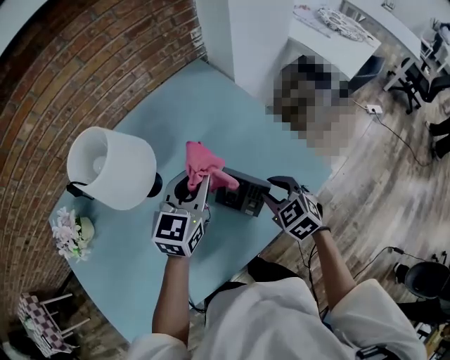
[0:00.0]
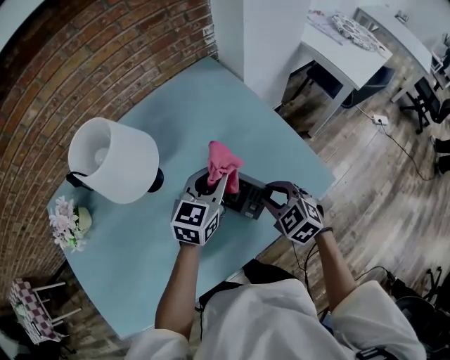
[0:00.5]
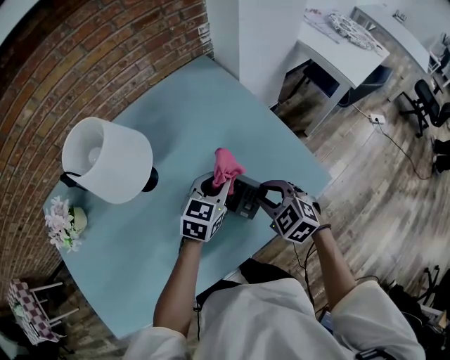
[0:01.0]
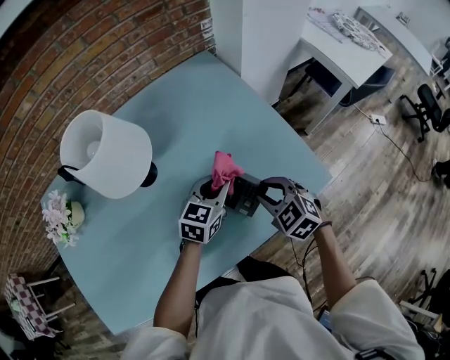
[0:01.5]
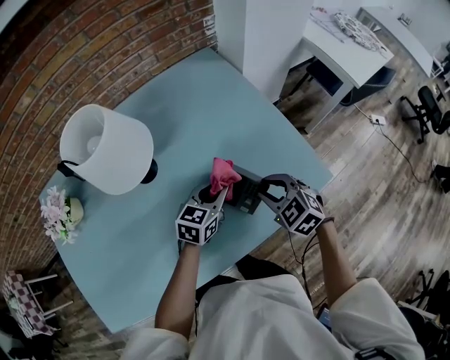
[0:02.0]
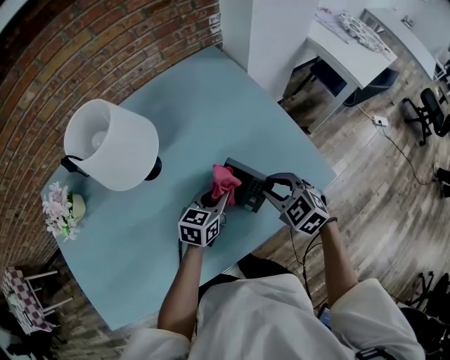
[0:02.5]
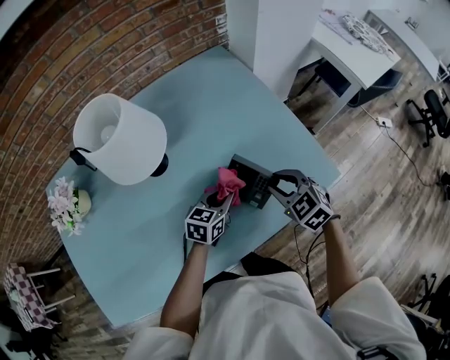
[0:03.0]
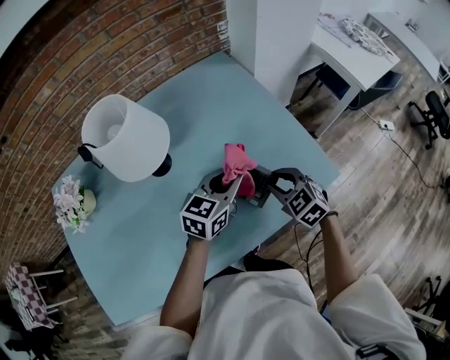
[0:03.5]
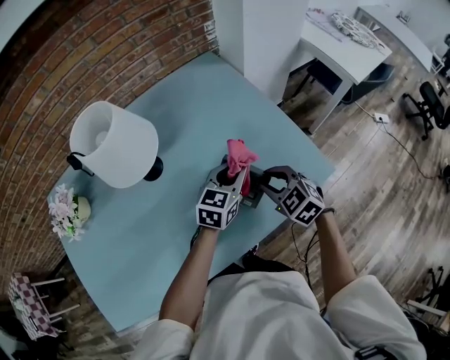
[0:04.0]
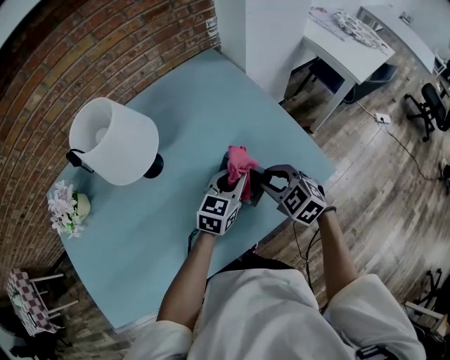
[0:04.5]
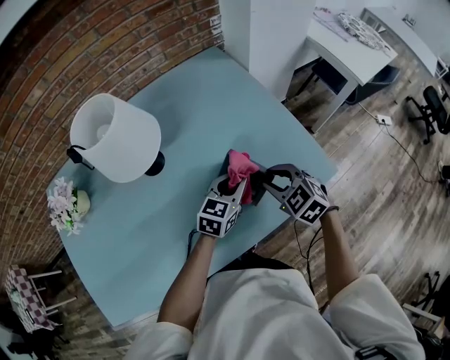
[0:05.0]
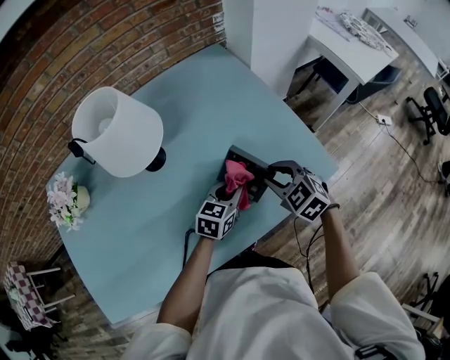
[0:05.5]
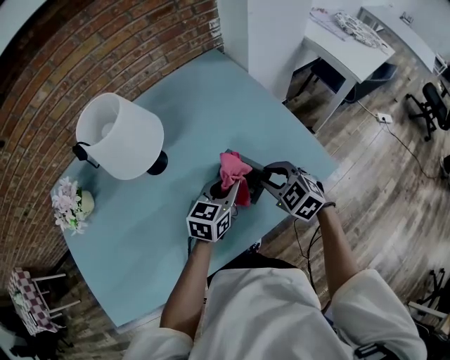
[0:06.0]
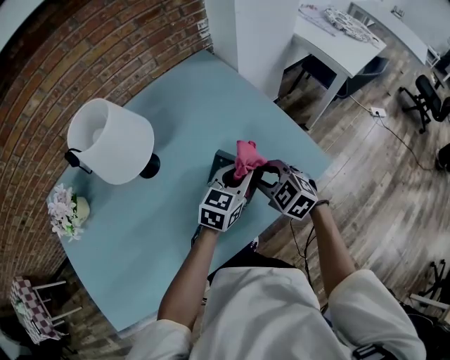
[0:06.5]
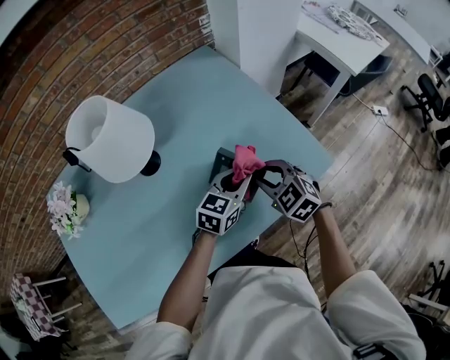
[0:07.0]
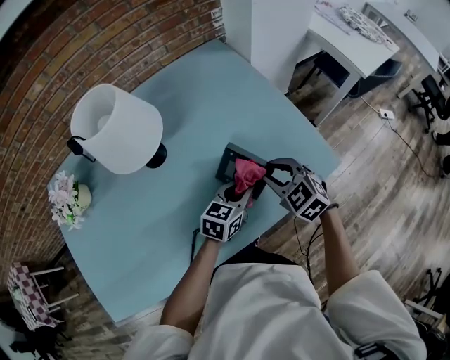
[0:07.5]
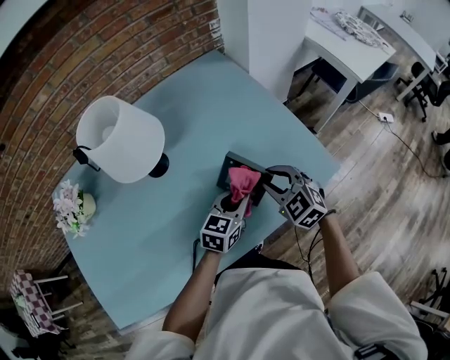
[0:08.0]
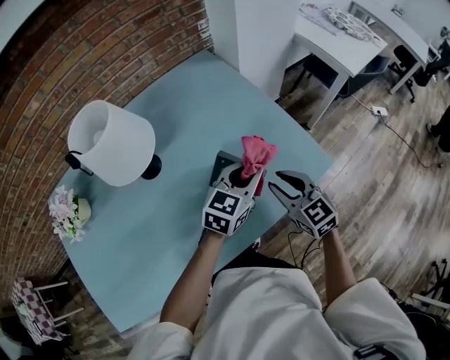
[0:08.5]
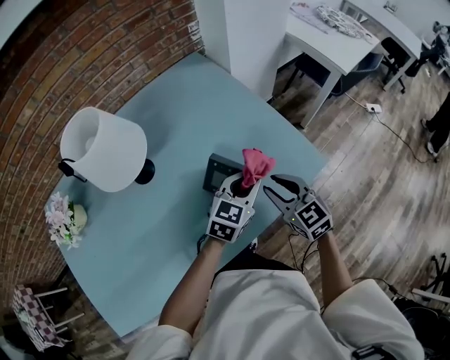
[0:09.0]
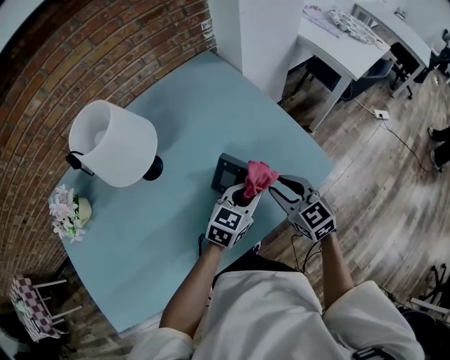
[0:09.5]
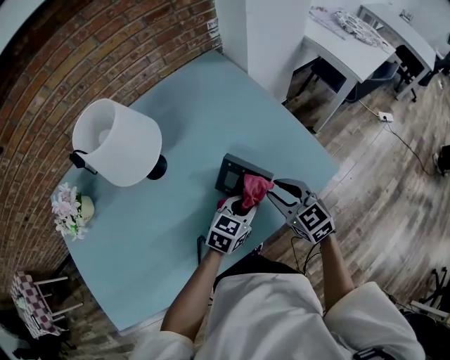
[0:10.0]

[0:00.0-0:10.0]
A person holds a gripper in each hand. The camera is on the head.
0:00.0 to 0:02.0: The left gripper moves downward, roughly 15 cm.
0:02.0 to 0:04.0: The left gripper moves up and down over roughly 15 cm, changing direction 2 times.
0:06.0 to 0:08.0: The left gripper ends up about 5 cm from where it was.
0:08.0 to 0:10.0: The left gripper reaches about 10 cm upward, then returns, while the right gripper rotates about 20 degrees.

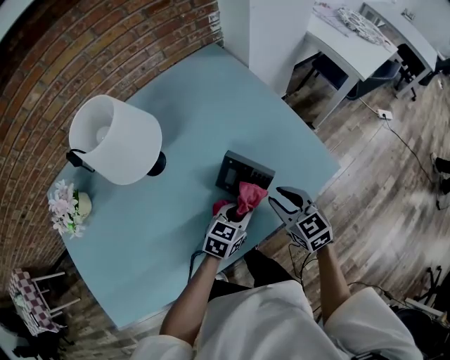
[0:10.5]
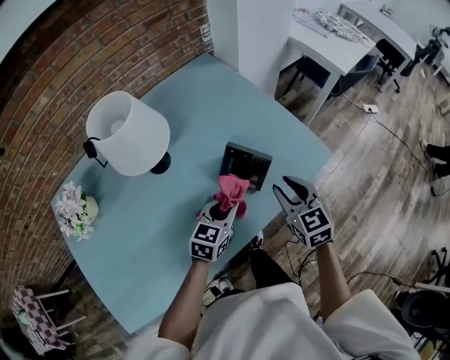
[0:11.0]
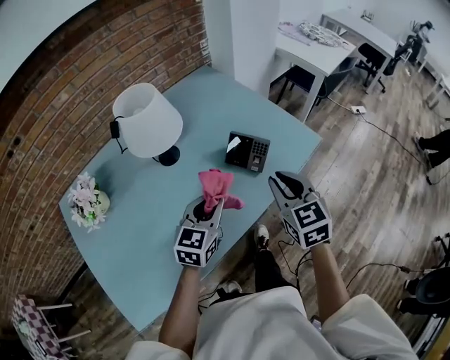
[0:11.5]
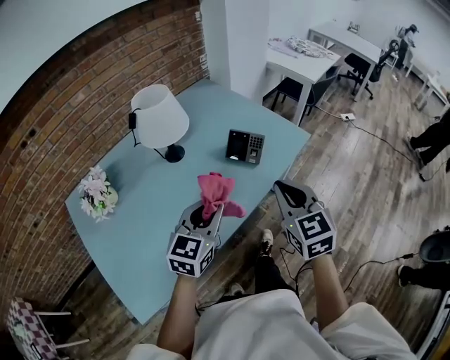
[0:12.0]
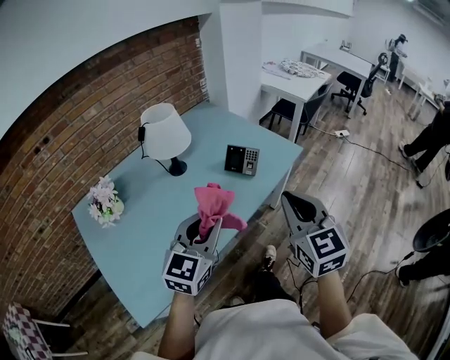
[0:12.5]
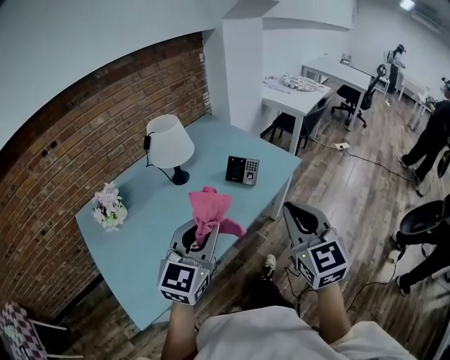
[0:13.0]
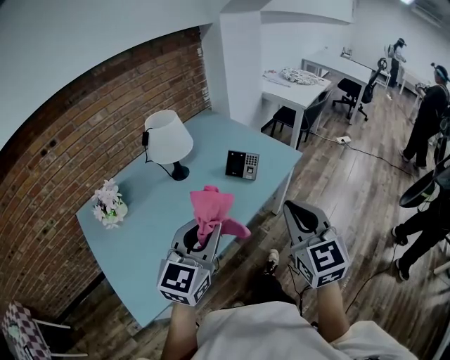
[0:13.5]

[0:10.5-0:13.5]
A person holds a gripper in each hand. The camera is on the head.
0:10.5 to 0:12.0: The right gripper travels backward and upward by some 35 cm, turns by roughly 30 degrees, and closes its fingers. Meanwhile the left gripper heads upward, backward and to the left, covering approximately 35 cm, and rotates some 30 degrees.
0:12.0 to 0:13.5: The two grippers go roughly 15 cm backward and upward.

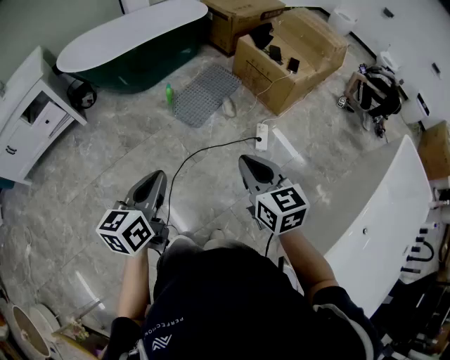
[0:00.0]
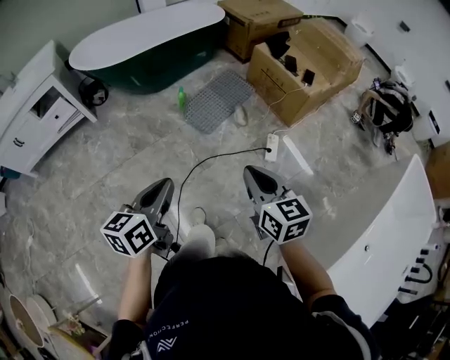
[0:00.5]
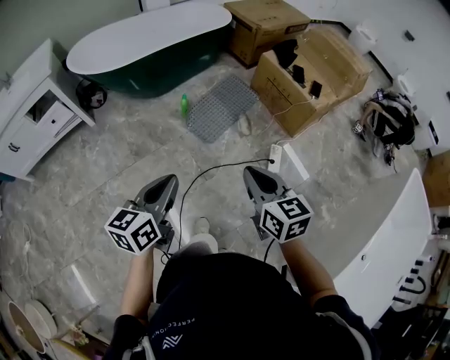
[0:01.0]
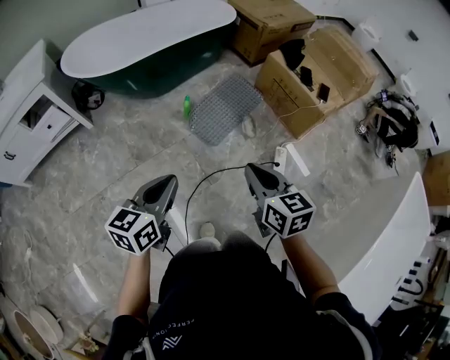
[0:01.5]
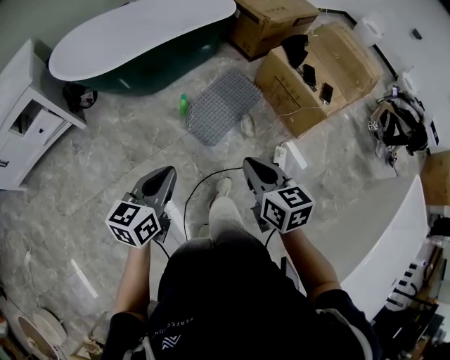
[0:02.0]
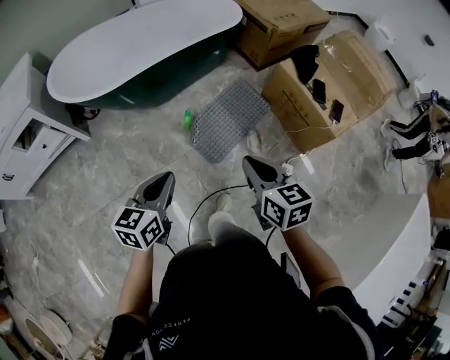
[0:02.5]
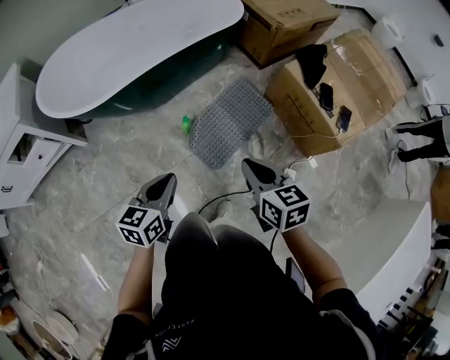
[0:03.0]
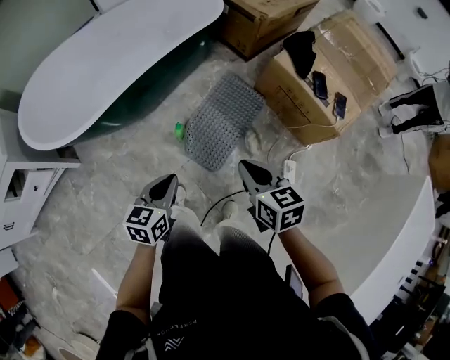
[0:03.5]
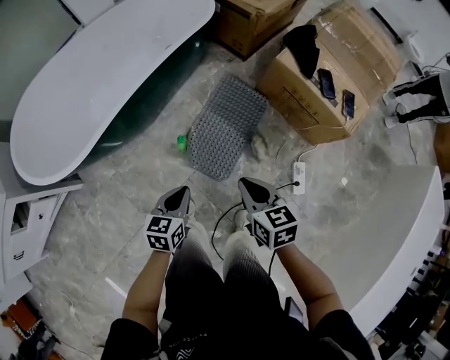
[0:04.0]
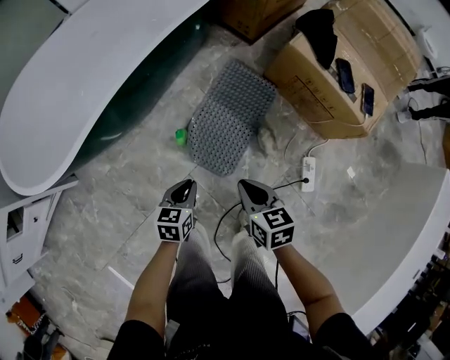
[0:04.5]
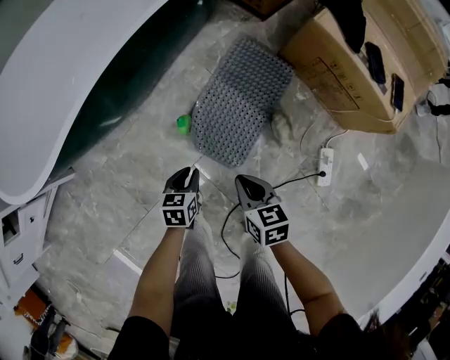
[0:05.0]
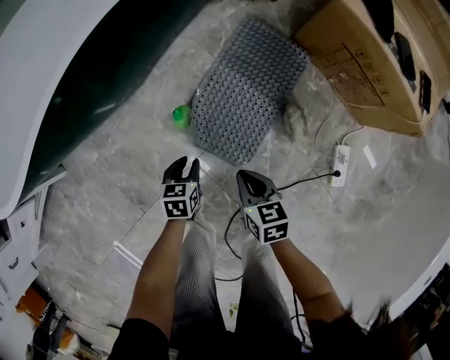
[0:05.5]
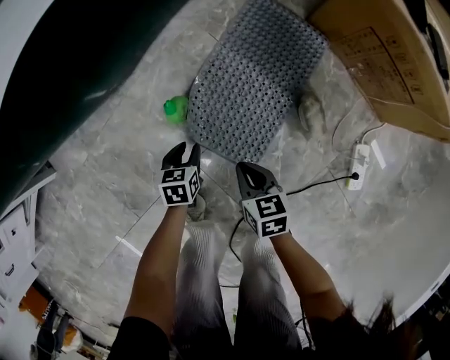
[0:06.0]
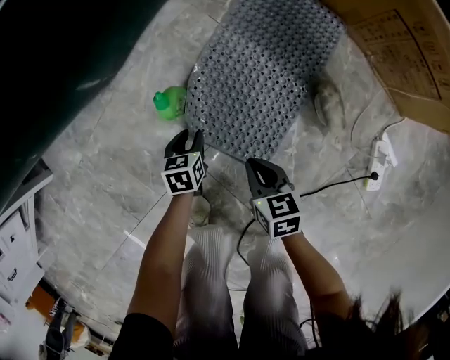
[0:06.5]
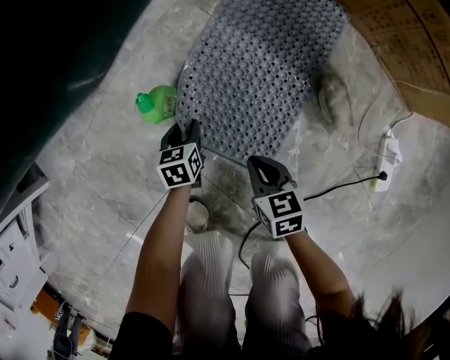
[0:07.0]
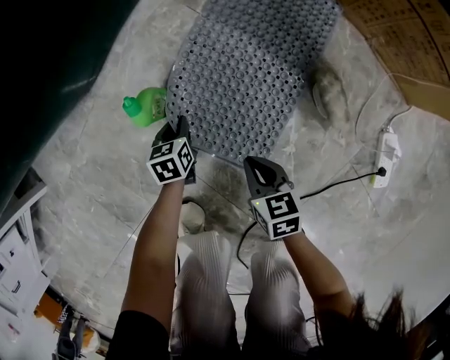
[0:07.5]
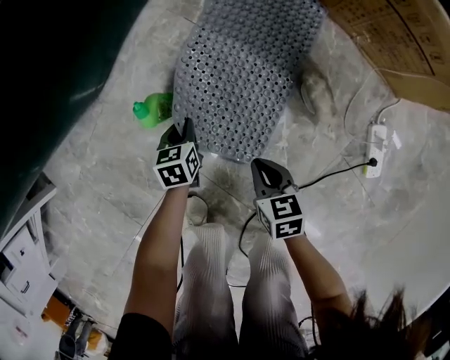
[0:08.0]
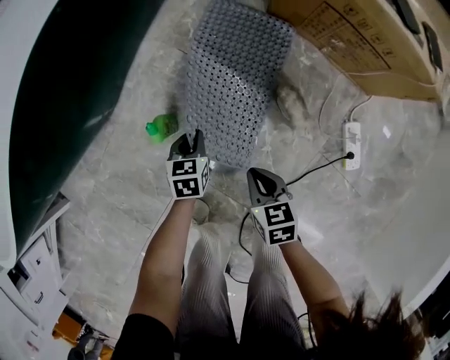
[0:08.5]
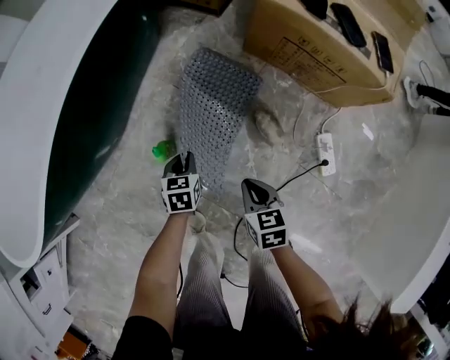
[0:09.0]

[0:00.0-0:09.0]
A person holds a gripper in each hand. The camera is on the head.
0:00.0 to 0:02.0: Both grippers move forward, approximately 25 cm.
0:02.0 to 0:04.5: Both grippers move forward and downward, about 40 cm. The left gripper changes its angle by roughly 30 degrees.
0:04.5 to 0:07.0: The two grippers go approximately 50 cm downward. The left gripper opens up.
0:07.0 to 0:09.0: The two grippers go about 25 cm upward. The left gripper closes its fingers.

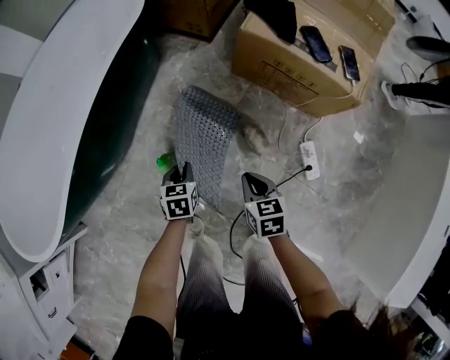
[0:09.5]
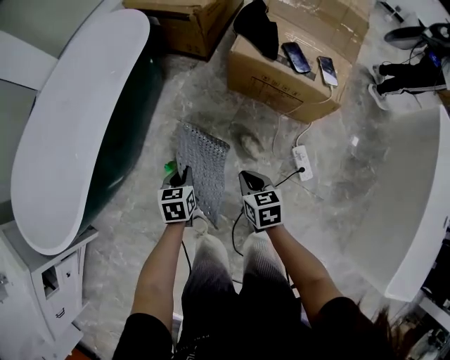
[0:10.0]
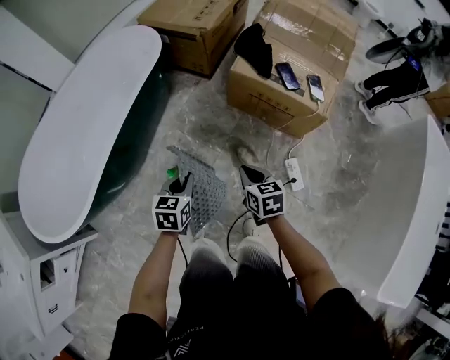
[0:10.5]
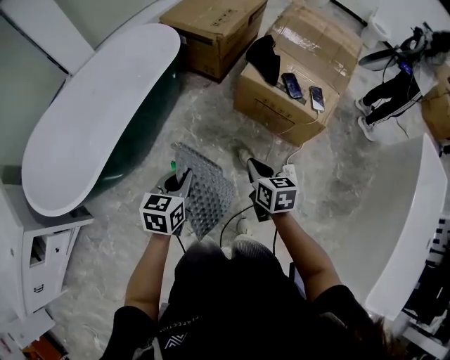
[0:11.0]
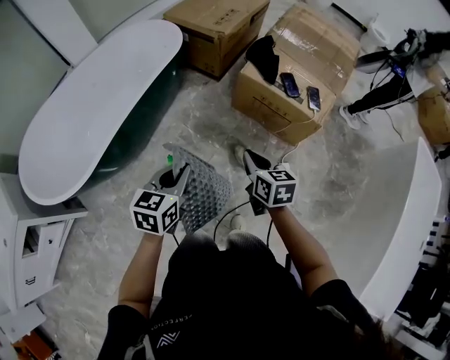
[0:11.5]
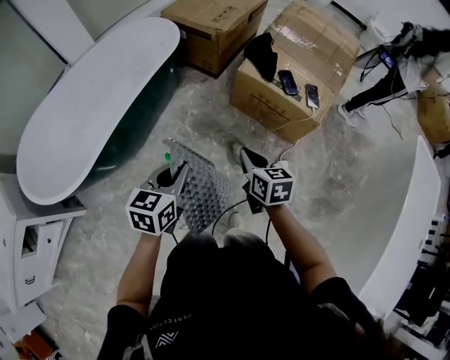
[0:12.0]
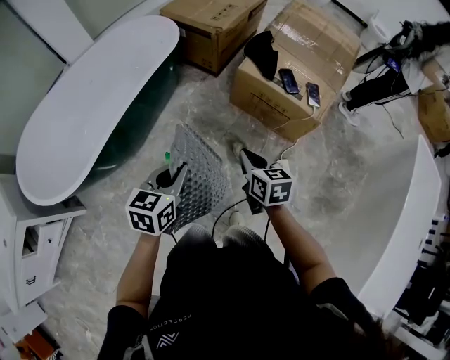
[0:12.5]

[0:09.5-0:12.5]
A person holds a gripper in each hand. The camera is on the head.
0:09.5 to 0:11.0: The two grippers go some 30 cm upward. The left gripper rotates some 20 degrees.
0:11.0 to 0:12.5: There are only small adjustments of the grippers.

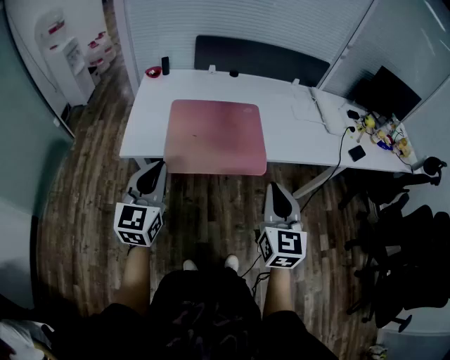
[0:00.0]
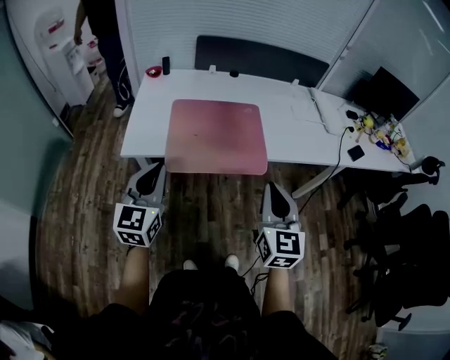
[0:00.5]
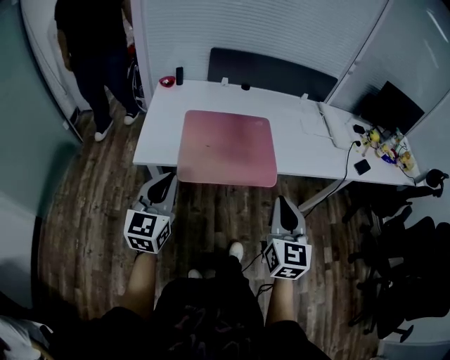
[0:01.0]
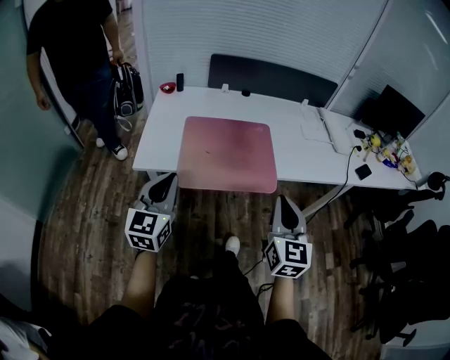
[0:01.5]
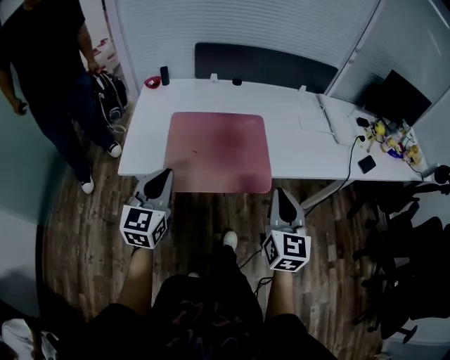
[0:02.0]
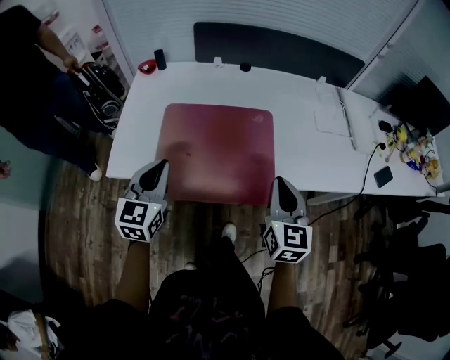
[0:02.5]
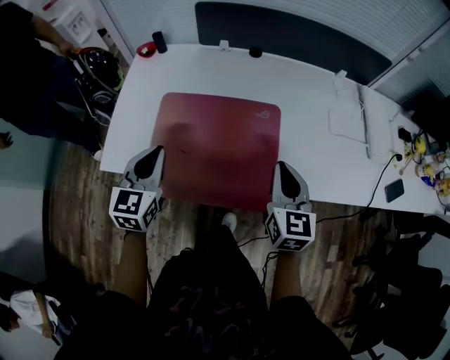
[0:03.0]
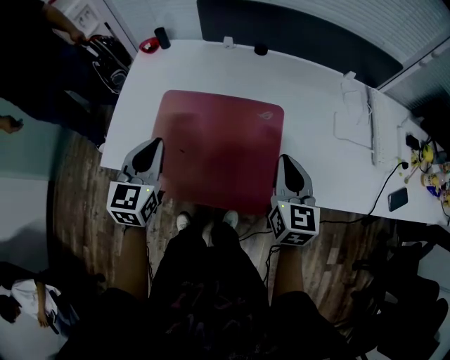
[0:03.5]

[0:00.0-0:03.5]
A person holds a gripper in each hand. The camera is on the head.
0:00.0 to 0:02.0: Both grippers move forward, some 10 cm.
0:02.0 to 0:03.5: Both grippers travel together forward, approximately 25 cm.
